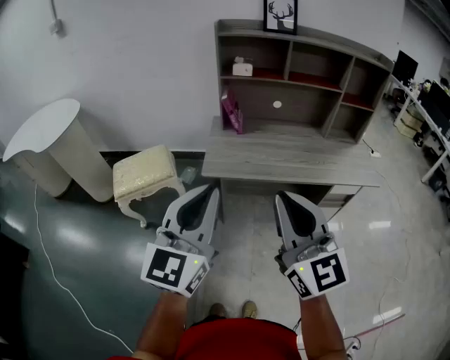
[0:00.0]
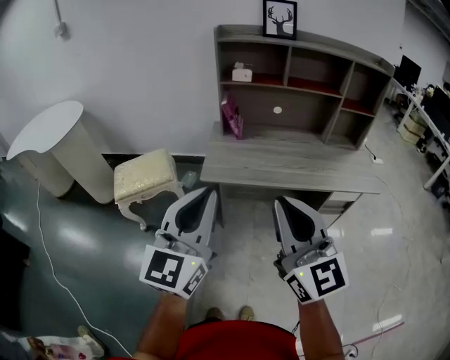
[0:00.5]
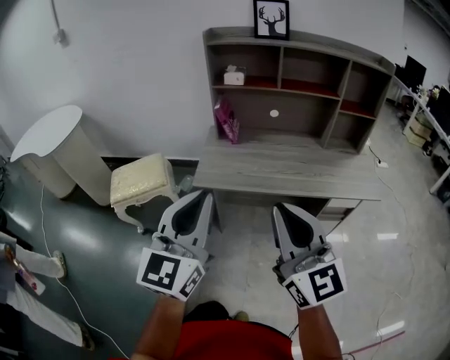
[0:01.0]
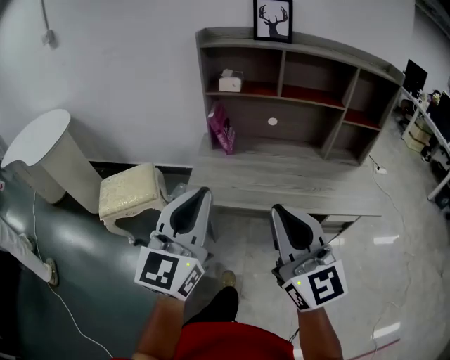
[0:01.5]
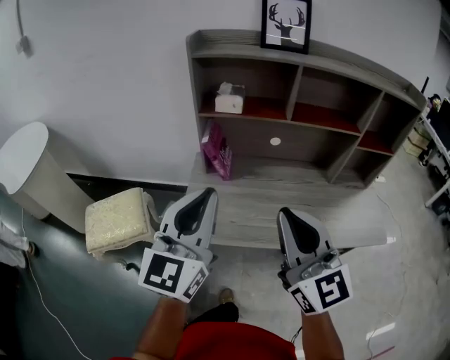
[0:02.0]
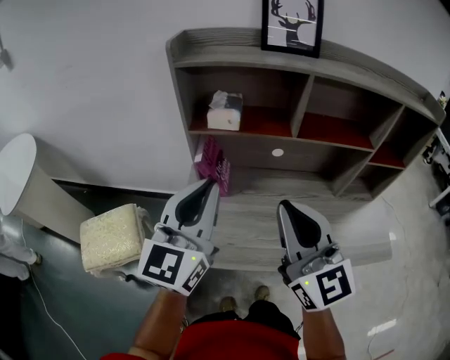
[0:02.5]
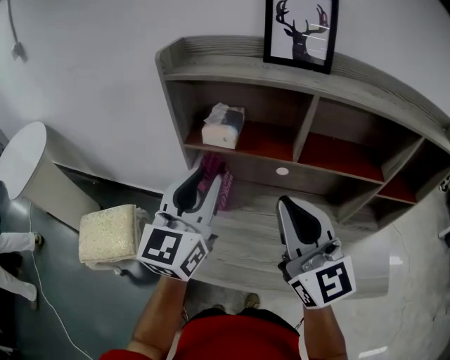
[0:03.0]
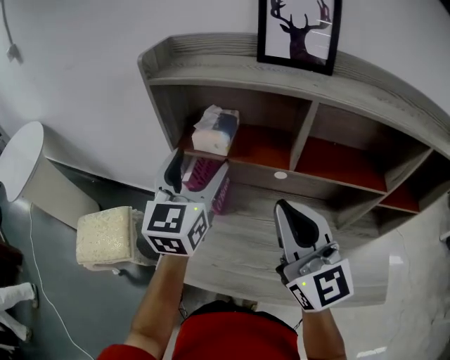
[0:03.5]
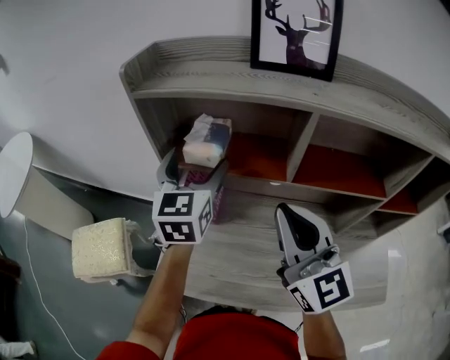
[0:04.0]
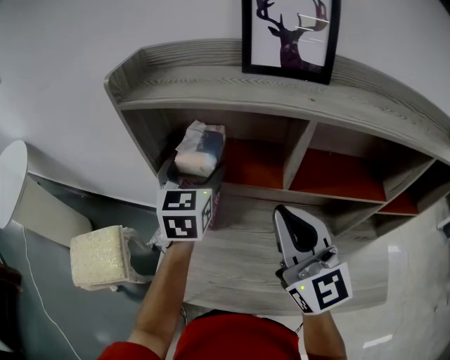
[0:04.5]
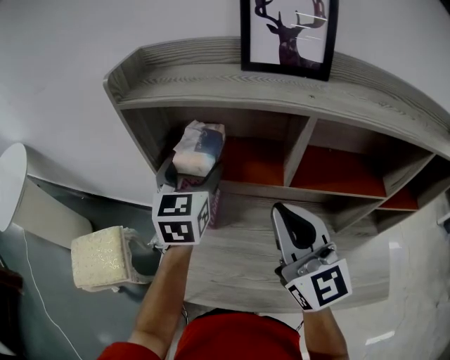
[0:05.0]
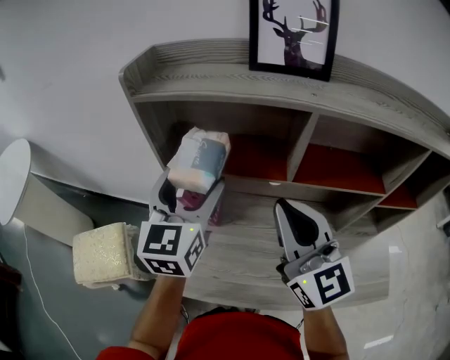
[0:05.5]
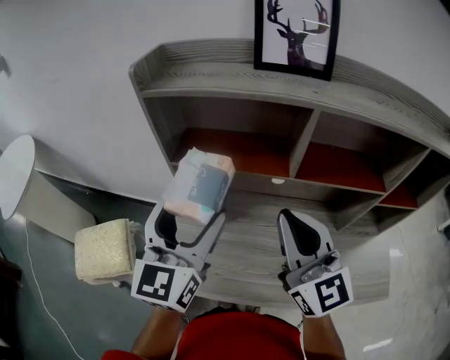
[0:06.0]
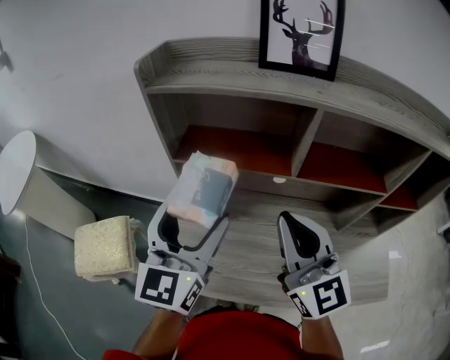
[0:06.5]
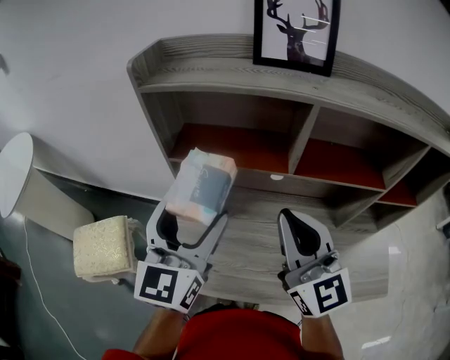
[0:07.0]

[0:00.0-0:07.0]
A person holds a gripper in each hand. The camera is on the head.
0:00.0 to 0:02.0: Both grippers move forward, roughly 30 cm.
0:02.0 to 0:03.5: The grippers both shift forward by some 25 cm. The left gripper opens.
0:03.5 to 0:05.0: The left gripper shifts roughly 10 cm forward, while the right gripper changes place by some 5 cm.
0:05.0 to 0:07.0: The left gripper moves backward, some 15 cm.

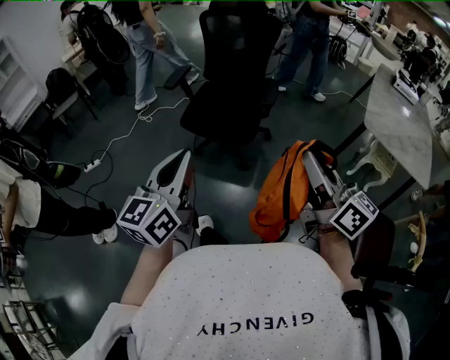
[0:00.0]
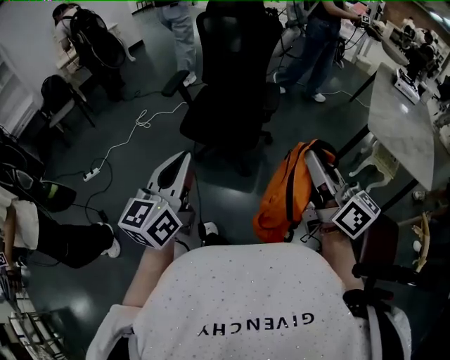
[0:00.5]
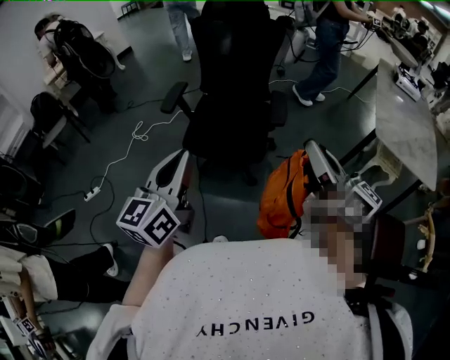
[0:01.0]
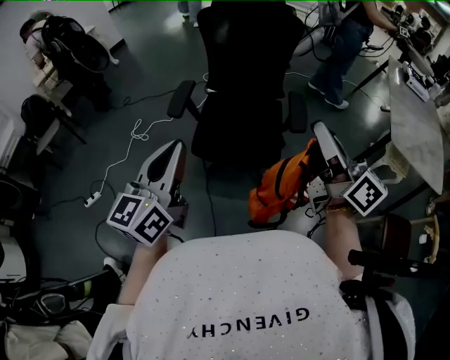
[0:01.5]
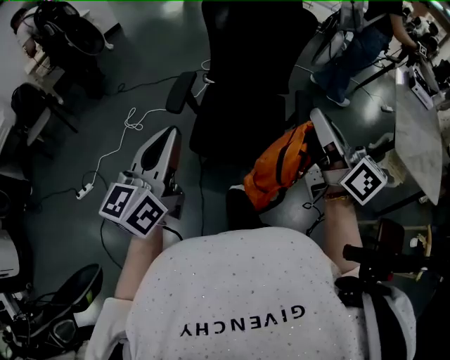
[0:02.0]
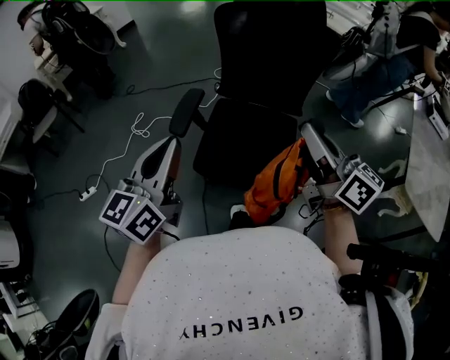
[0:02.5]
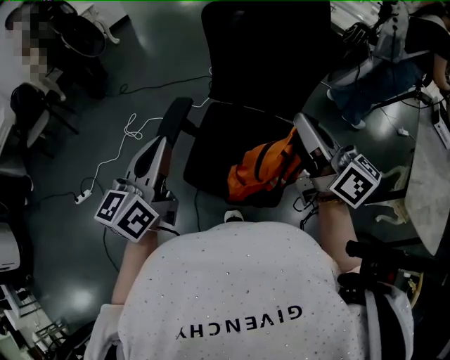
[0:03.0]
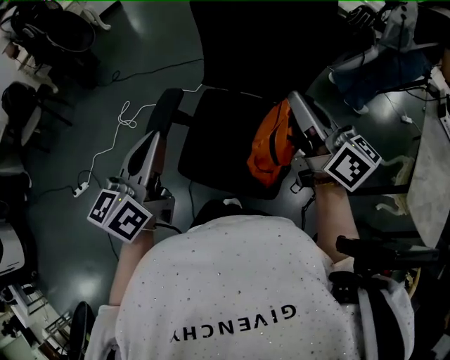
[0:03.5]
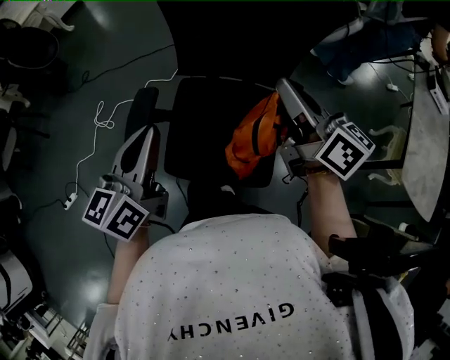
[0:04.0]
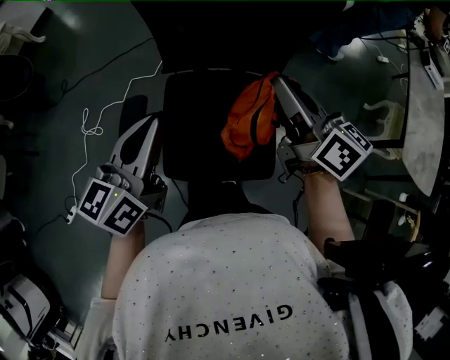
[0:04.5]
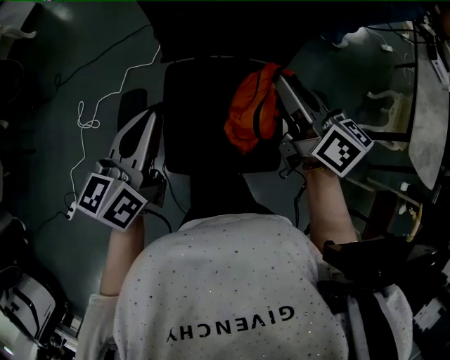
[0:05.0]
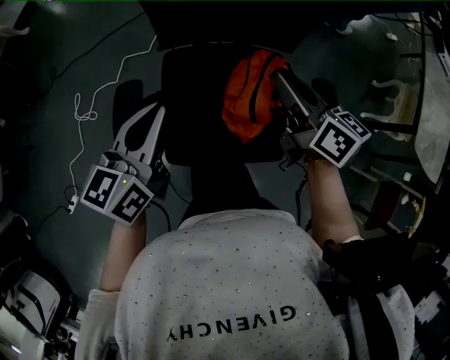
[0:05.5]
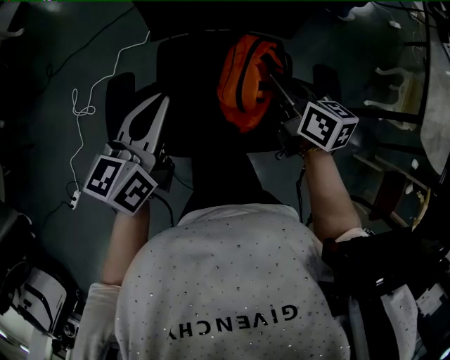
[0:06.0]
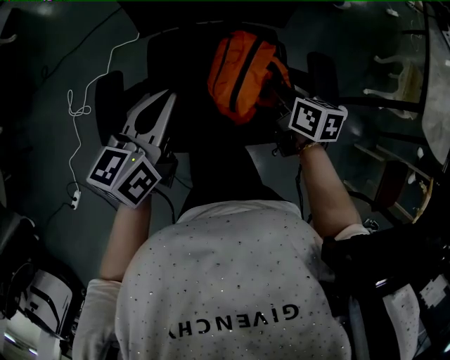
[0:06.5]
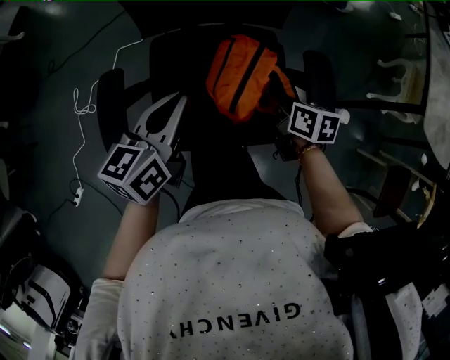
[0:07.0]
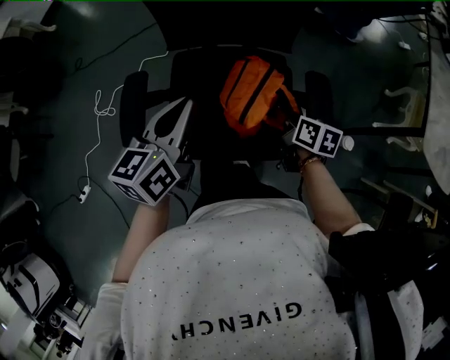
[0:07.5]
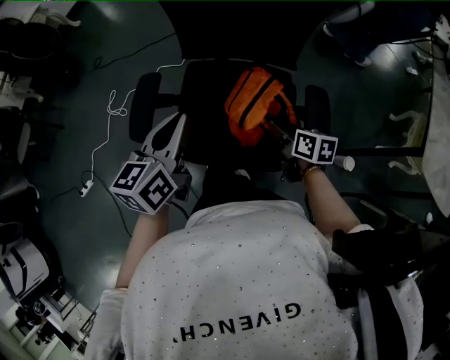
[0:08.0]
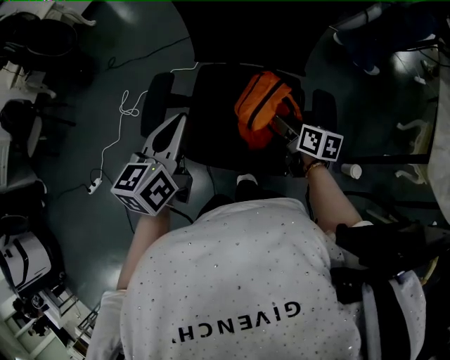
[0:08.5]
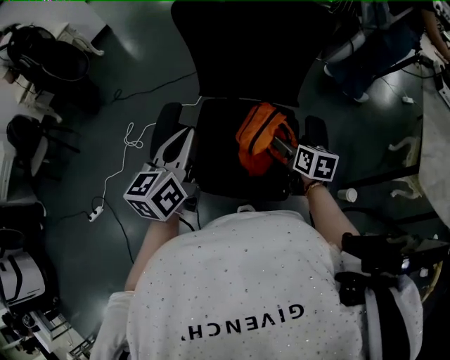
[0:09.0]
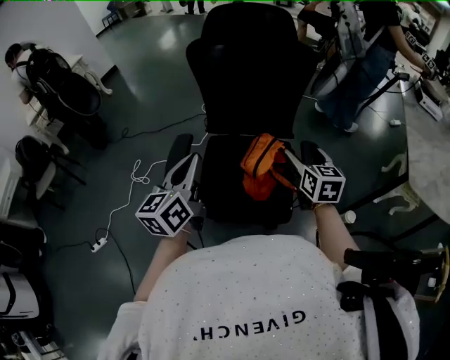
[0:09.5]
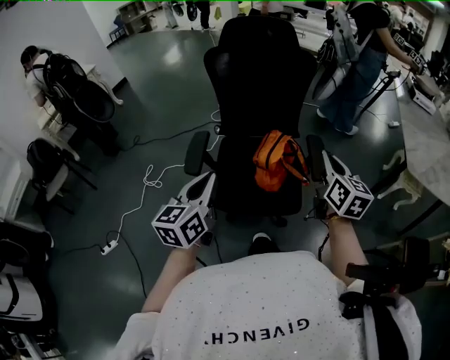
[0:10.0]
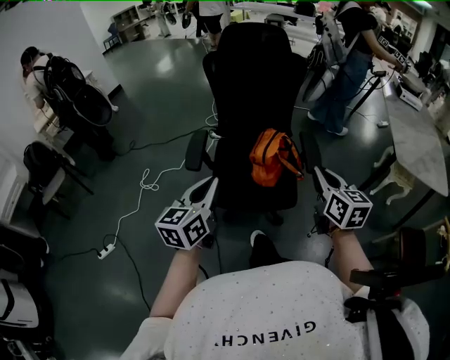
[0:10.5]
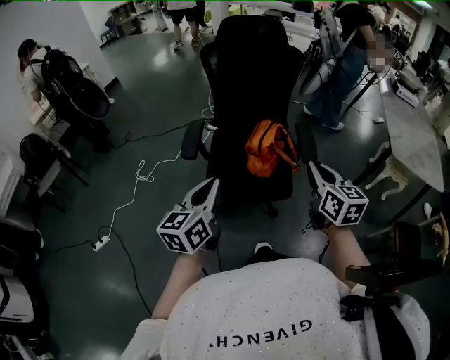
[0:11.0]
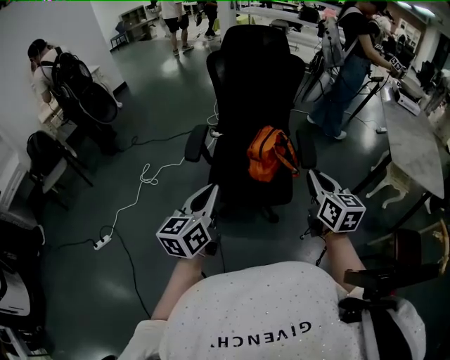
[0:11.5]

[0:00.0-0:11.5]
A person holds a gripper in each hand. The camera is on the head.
0:00.0 to 0:02.0: Both grippers travel together forward, some 35 cm.
0:02.0 to 0:04.0: Both grippers travel together forward, some 30 cm.
0:04.0 to 0:06.0: The right gripper is displaced downward by some 20 cm, and turns by about 30 degrees; the left gripper goes roughly 15 cm downward and forward, and swivels roughly 20 degrees.
0:06.0 to 0:07.5: The right gripper moves downward, backward and to the right, about 15 cm; the left gripper heads to the right, covering about 5 cm.
0:07.5 to 0:09.5: The right gripper goes some 20 cm upward, turns by about 40 degrees, and opens up, while the left gripper moves upward, backward and to the left, approximately 15 cm.
0:09.5 to 0:11.5: Both grippers travel together backward, about 30 cm. The right gripper closes.

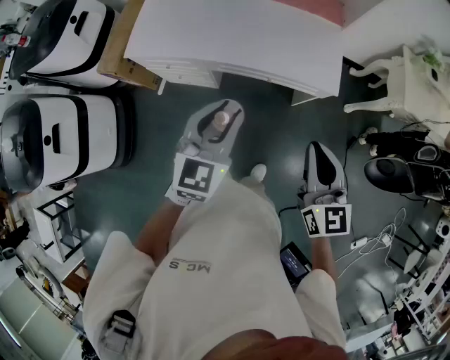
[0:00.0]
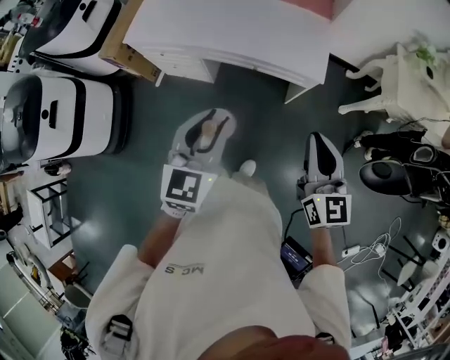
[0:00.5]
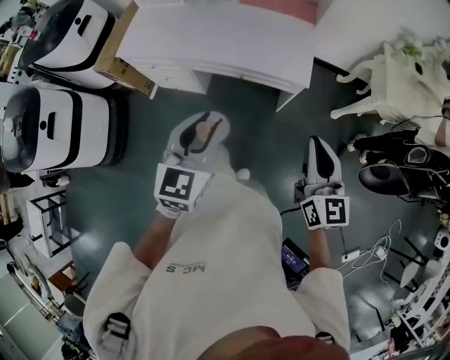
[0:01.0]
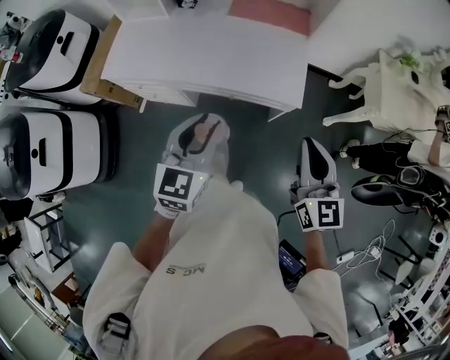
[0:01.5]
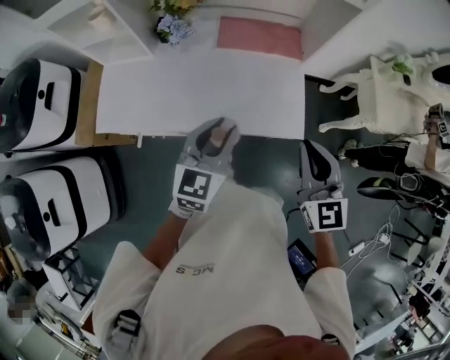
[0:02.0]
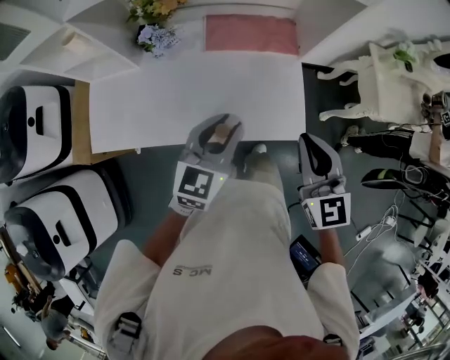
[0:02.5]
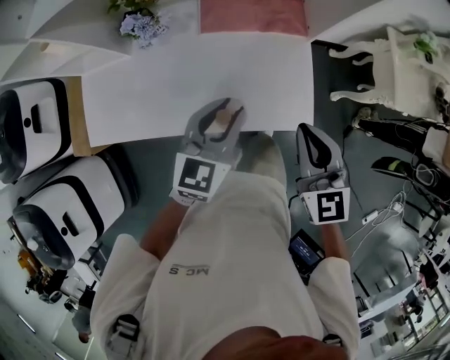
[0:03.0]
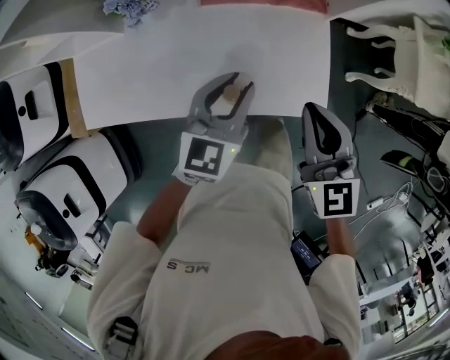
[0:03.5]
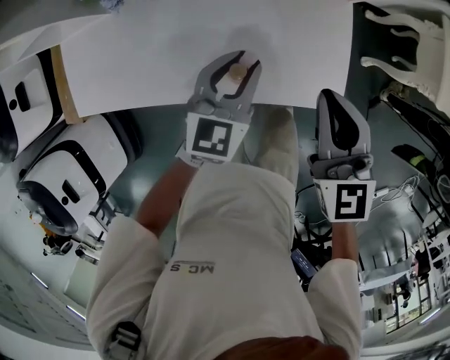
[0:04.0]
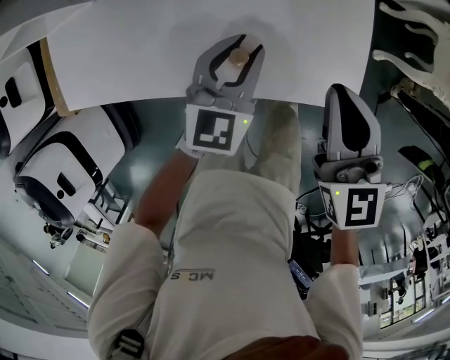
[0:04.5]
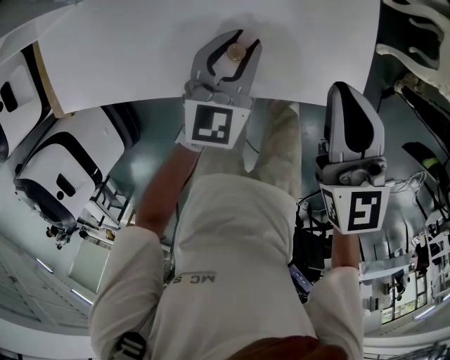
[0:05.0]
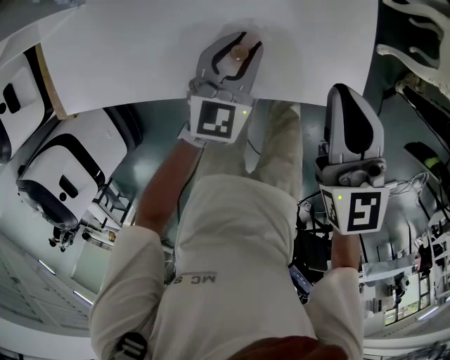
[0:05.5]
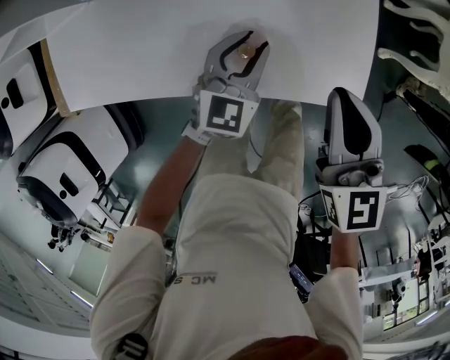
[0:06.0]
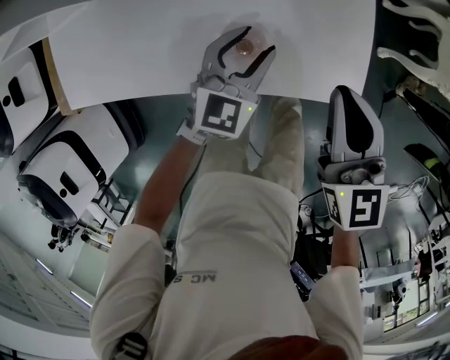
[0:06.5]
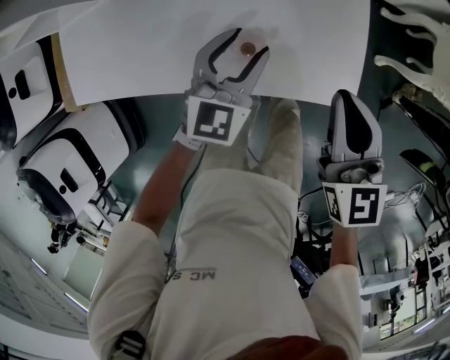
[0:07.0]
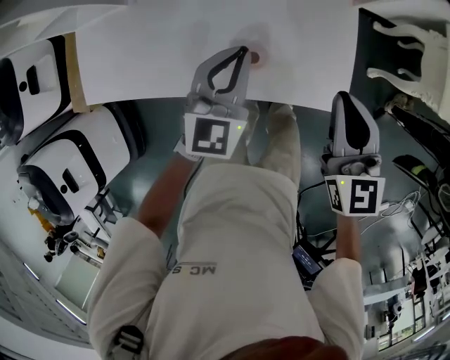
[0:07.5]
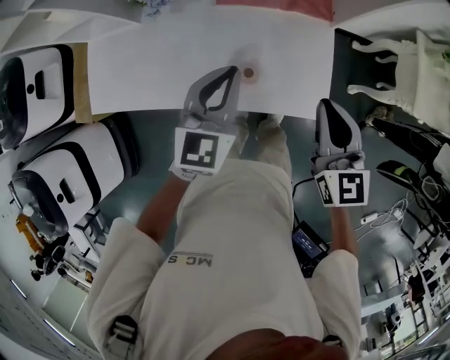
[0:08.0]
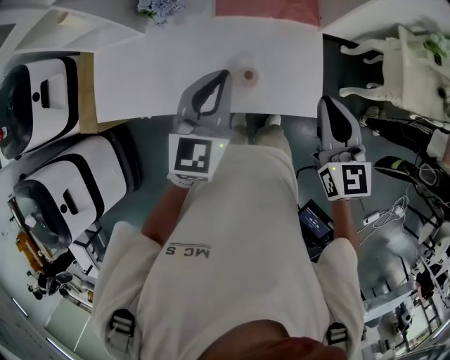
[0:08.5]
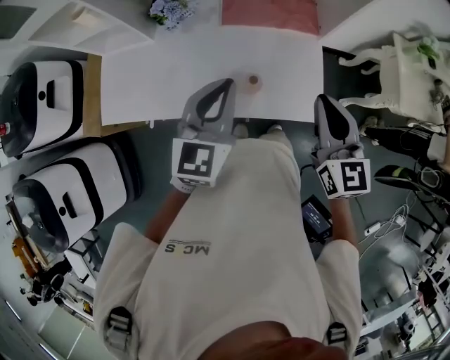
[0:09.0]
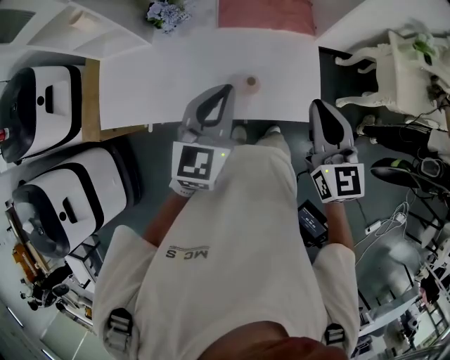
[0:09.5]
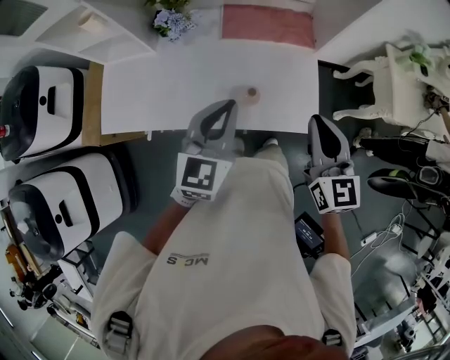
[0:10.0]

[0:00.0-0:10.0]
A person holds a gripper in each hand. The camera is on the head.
0:00.0 to 0:02.0: The right gripper goes approximately 25 cm forward; the left gripper travels forward and to the right by approximately 25 cm.
0:02.0 to 0:04.0: The two grippers go roughly 30 cm downward and forward.
0:04.0 to 0:06.0: The right gripper travels downward by approximately 10 cm. The left gripper shifts some 10 cm downward.
0:06.0 to 0:08.0: The left gripper travels upward by roughly 30 cm, and closes. Meanwhile the right gripper travels upward by some 15 cm.
0:08.0 to 0:10.0: The grippers both shift backward and upward by approximately 10 cm.
